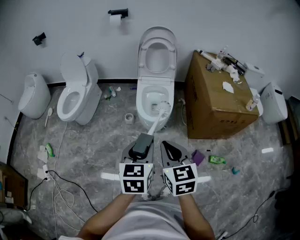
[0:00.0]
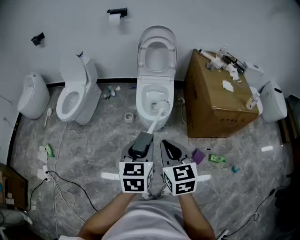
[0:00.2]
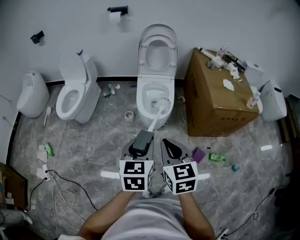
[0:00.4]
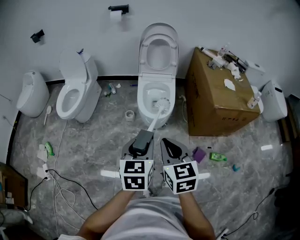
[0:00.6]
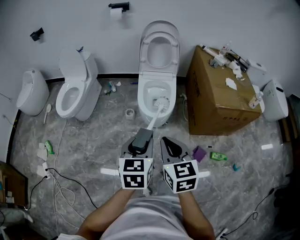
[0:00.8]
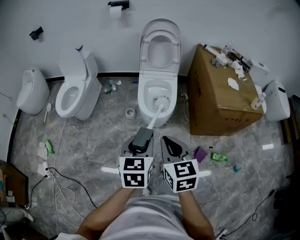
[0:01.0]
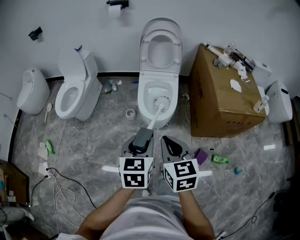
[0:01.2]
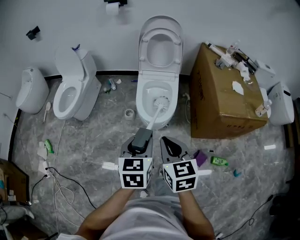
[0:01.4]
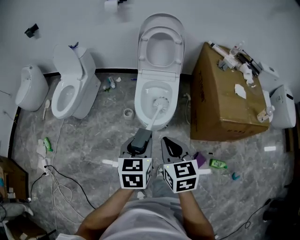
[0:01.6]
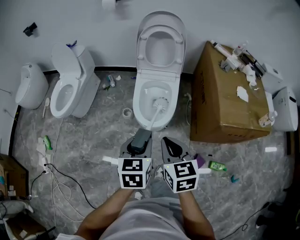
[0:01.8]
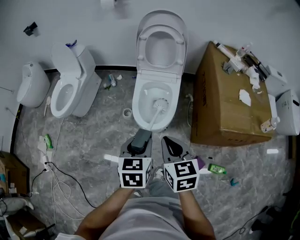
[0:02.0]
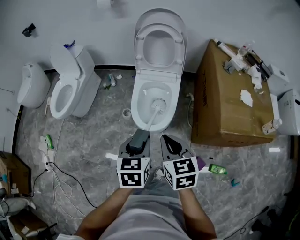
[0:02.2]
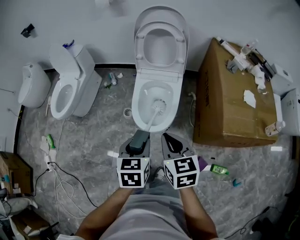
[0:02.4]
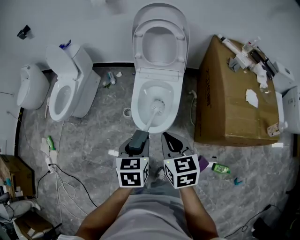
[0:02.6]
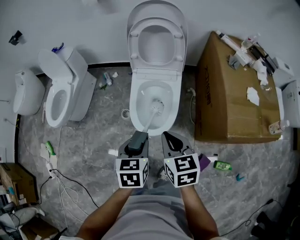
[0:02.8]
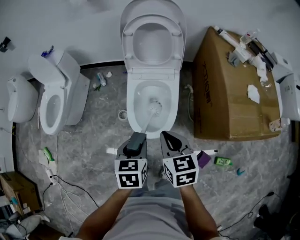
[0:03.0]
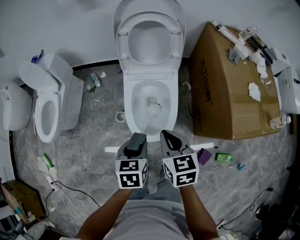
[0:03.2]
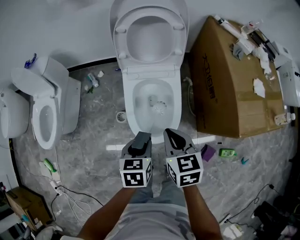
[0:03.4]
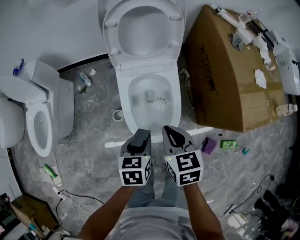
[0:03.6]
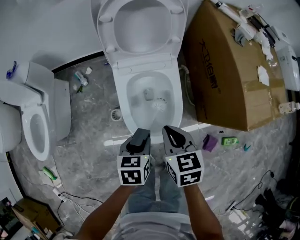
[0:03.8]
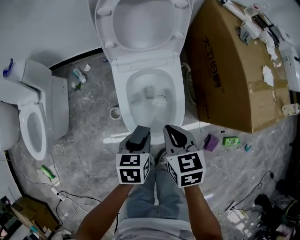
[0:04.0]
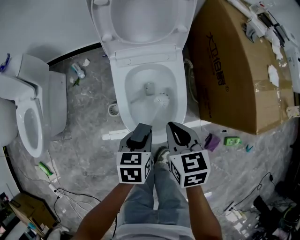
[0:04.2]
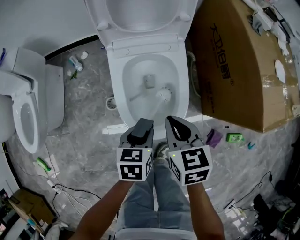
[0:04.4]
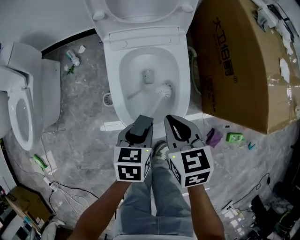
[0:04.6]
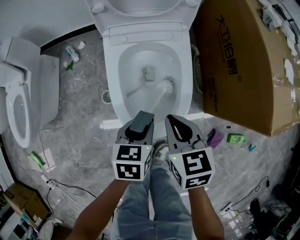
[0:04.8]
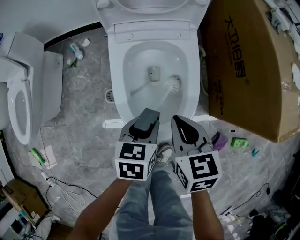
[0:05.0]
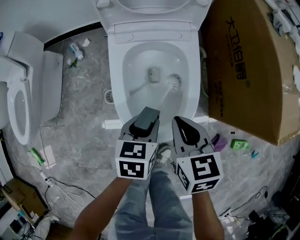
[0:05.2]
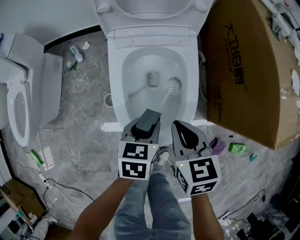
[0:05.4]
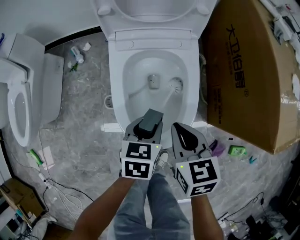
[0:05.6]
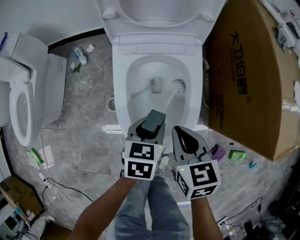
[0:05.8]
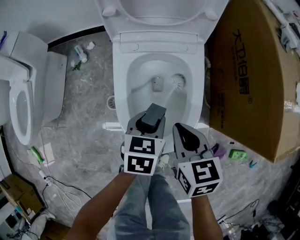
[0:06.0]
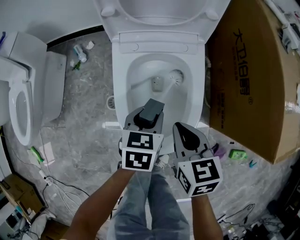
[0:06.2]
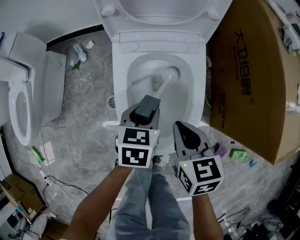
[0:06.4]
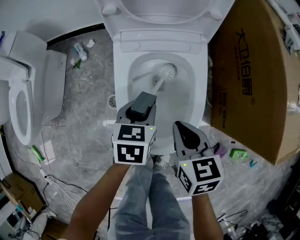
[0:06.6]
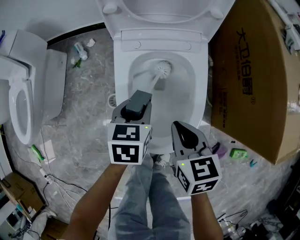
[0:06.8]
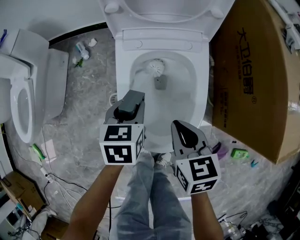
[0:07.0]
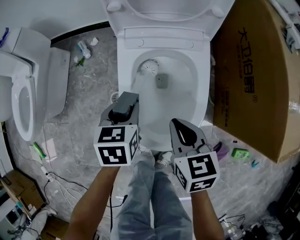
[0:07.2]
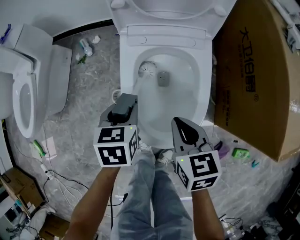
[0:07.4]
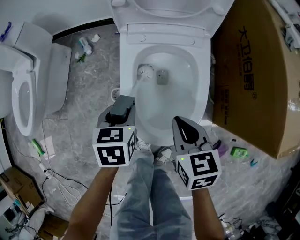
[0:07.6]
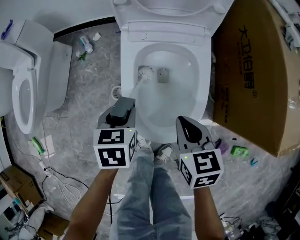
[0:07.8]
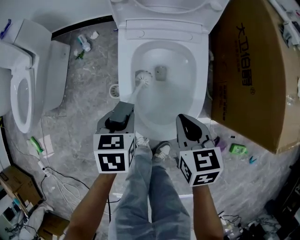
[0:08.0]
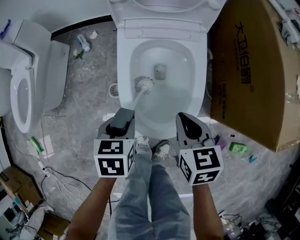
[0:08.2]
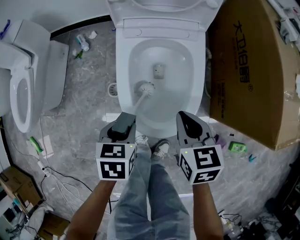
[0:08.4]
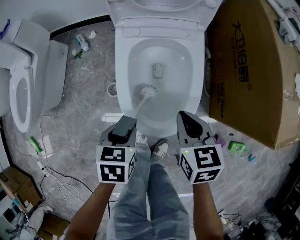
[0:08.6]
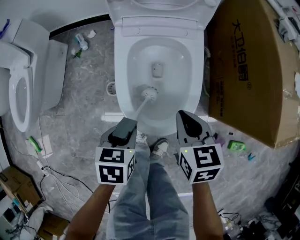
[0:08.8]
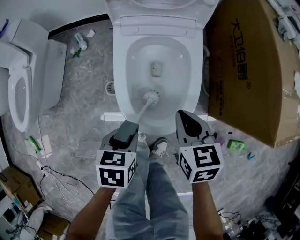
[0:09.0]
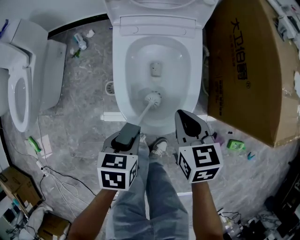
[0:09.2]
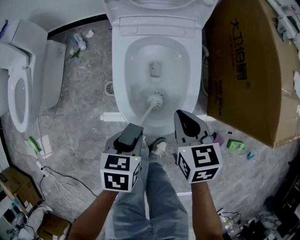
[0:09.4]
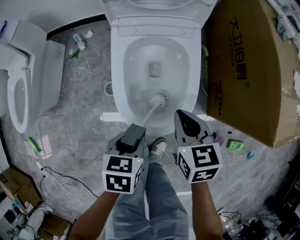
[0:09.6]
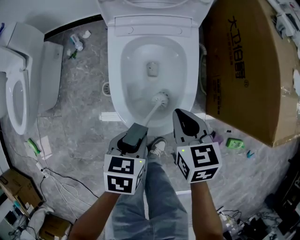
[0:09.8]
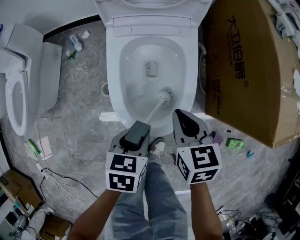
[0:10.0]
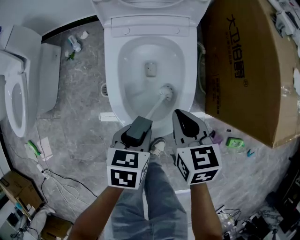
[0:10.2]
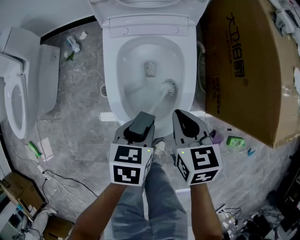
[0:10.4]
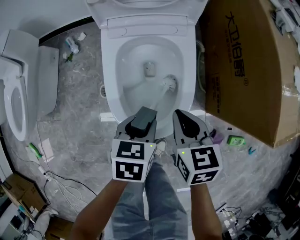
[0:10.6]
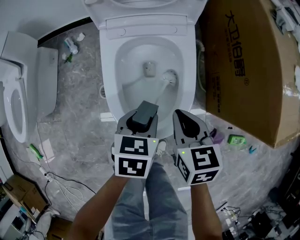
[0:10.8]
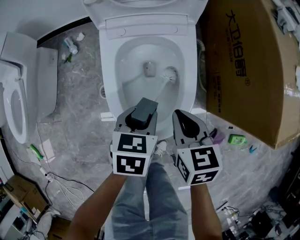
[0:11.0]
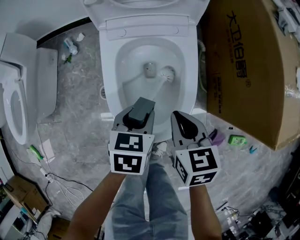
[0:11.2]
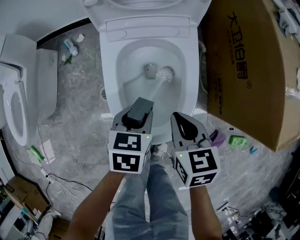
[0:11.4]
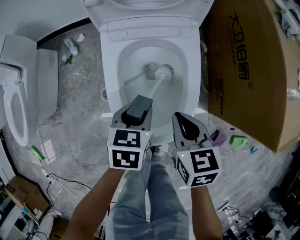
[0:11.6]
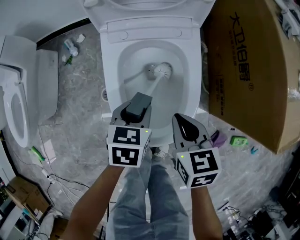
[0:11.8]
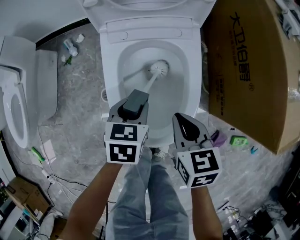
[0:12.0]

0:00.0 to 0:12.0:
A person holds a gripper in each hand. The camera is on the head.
0:00.0 to 0:01.6: The grippers both shift forward by approximately 15 cm.
0:01.6 to 0:03.0: The two grippers go roughly 25 cm forward and downward.
0:03.0 to 0:04.4: Both grippers move downward and forward, roughly 25 cm.
0:04.4 to 0:06.0: The left gripper is displaced forward and downward by some 10 cm, while the right gripper heads downward, covering about 5 cm.
0:06.0 to 0:07.6: The left gripper goes roughly 10 cm to the left.
0:07.6 to 0:09.0: The left gripper travels backward by about 15 cm.
0:09.0 to 0:10.4: The left gripper moves to the right and forward, approximately 10 cm.
0:10.4 to 0:12.0: The left gripper travels forward by approximately 10 cm.

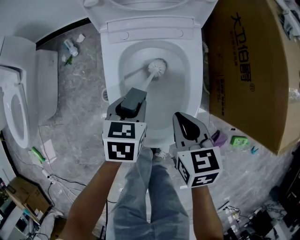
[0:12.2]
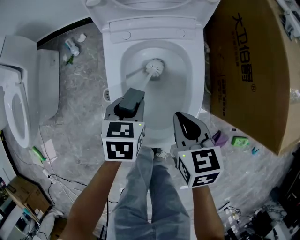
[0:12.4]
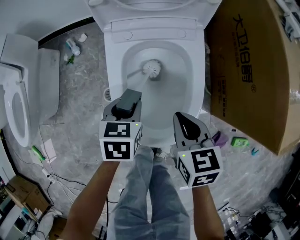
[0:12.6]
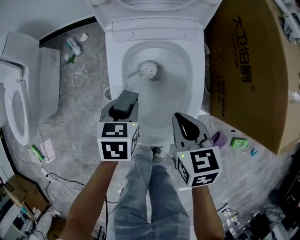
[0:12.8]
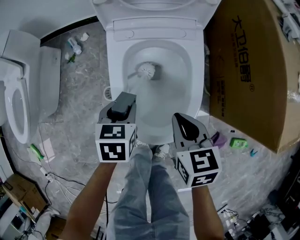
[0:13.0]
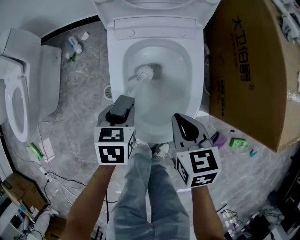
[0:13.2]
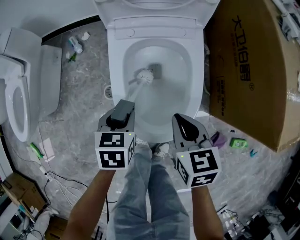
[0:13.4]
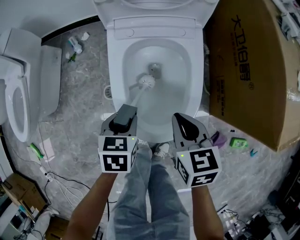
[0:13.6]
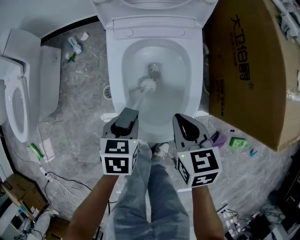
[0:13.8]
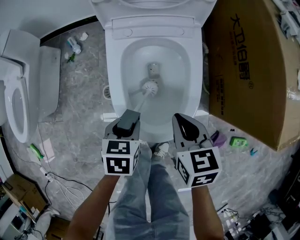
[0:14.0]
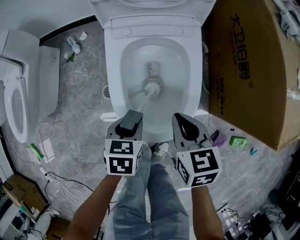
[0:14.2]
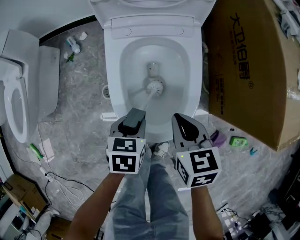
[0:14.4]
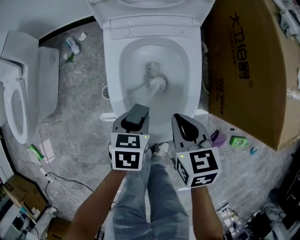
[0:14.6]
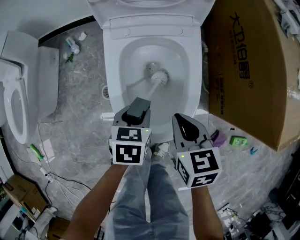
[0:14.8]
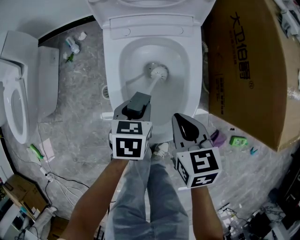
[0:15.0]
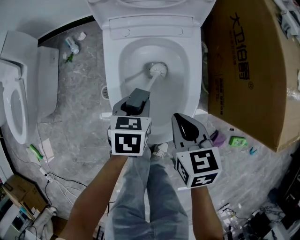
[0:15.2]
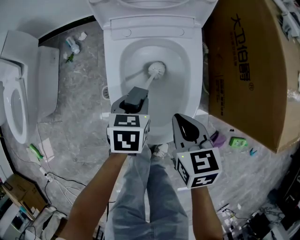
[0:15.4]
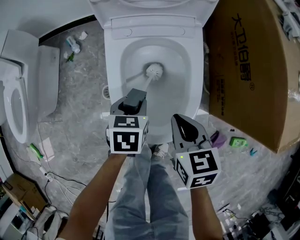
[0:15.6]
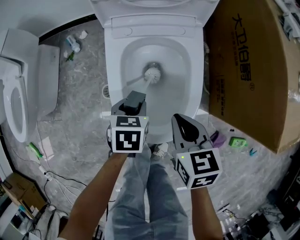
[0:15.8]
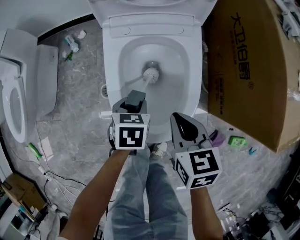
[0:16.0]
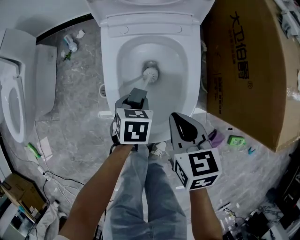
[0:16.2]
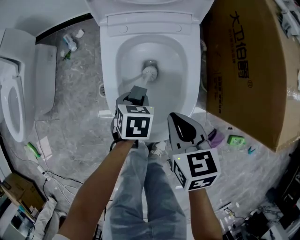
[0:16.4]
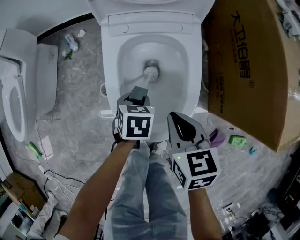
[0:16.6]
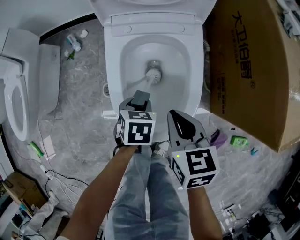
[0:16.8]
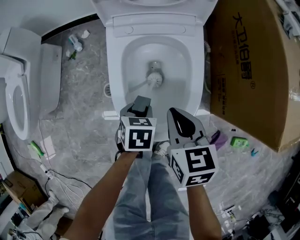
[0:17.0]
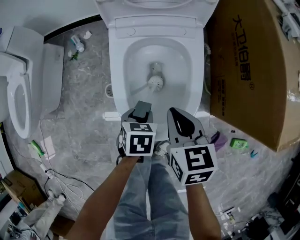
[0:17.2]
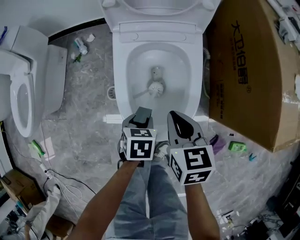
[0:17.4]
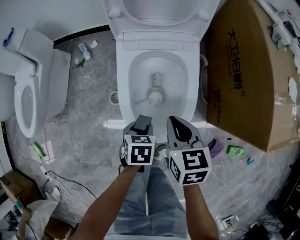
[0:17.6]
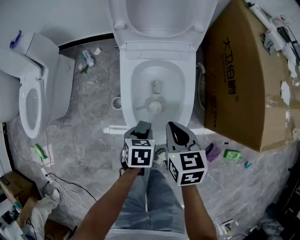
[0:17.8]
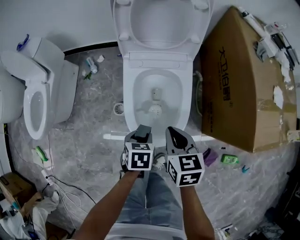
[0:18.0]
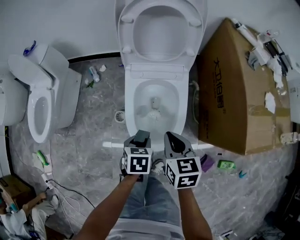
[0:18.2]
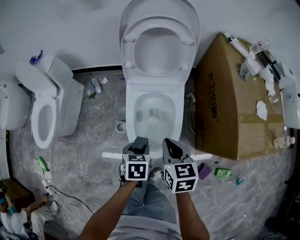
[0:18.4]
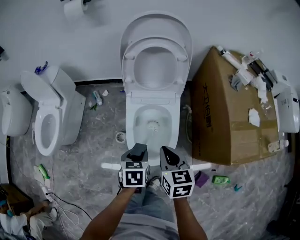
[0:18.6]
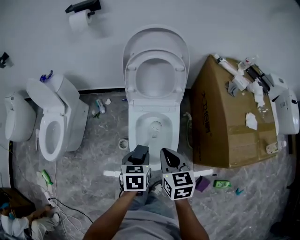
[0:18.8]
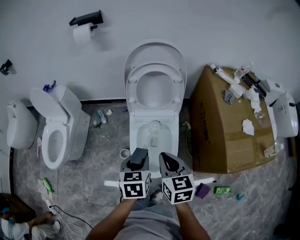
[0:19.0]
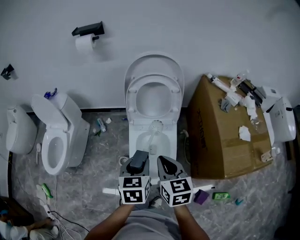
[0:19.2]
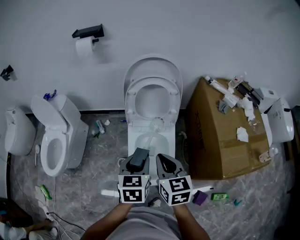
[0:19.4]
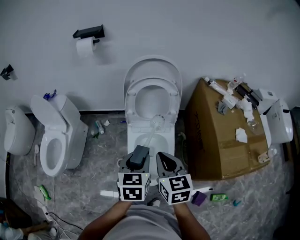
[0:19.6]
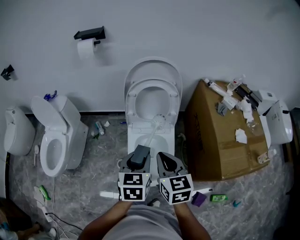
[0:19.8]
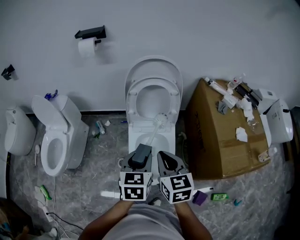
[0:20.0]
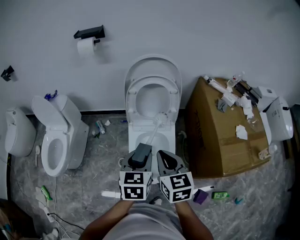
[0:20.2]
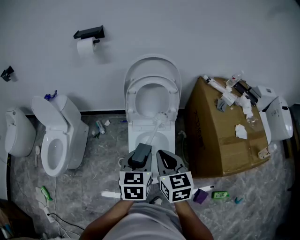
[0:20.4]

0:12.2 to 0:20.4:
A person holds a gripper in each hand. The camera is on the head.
0:12.2 to 0:13.8: The left gripper shifts approximately 10 cm backward.
0:13.8 to 0:15.4: The left gripper travels forward by approximately 5 cm.
0:15.4 to 0:17.2: The left gripper shifts approximately 5 cm backward.
0:17.2 to 0:18.8: Both grippers move upward, approximately 30 cm.
0:18.8 to 0:20.4: Both grippers move upward, roughly 15 cm. The left gripper turns by approximately 20 degrees.

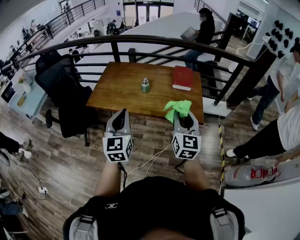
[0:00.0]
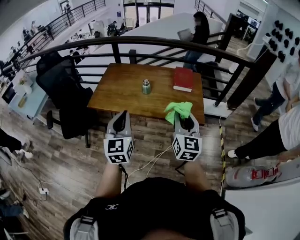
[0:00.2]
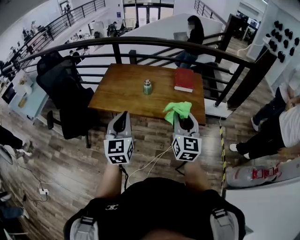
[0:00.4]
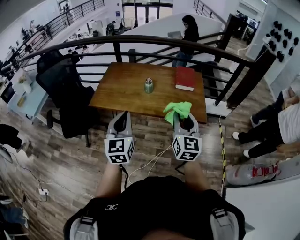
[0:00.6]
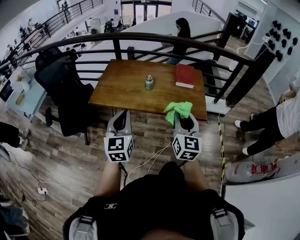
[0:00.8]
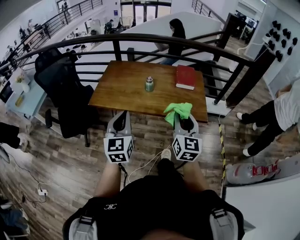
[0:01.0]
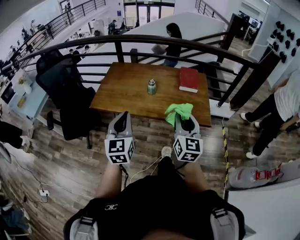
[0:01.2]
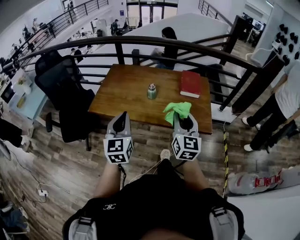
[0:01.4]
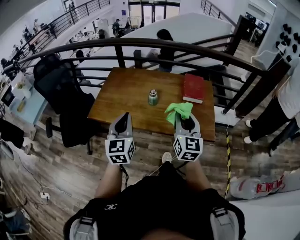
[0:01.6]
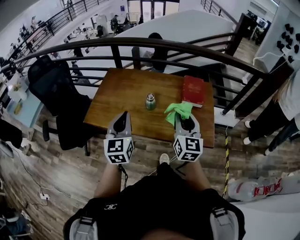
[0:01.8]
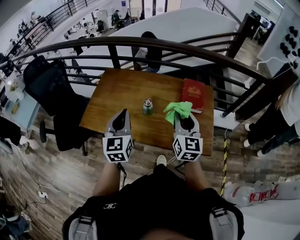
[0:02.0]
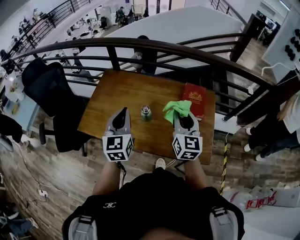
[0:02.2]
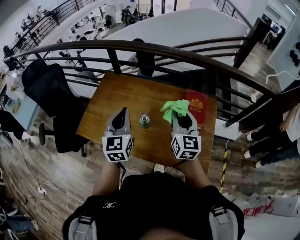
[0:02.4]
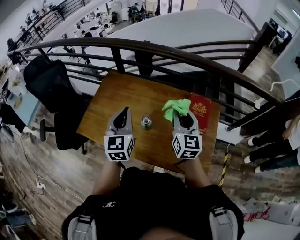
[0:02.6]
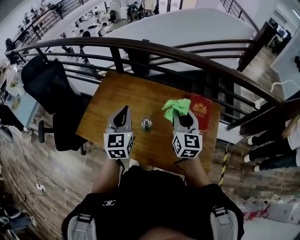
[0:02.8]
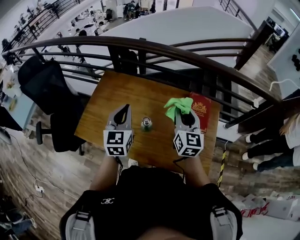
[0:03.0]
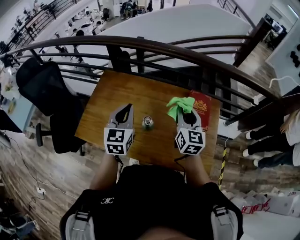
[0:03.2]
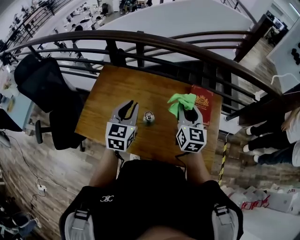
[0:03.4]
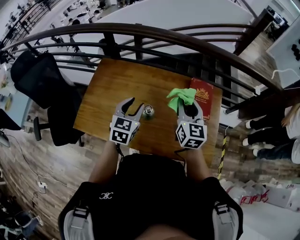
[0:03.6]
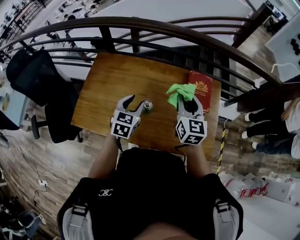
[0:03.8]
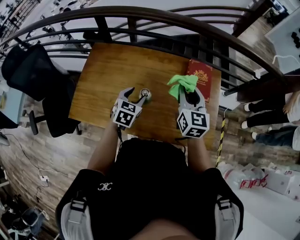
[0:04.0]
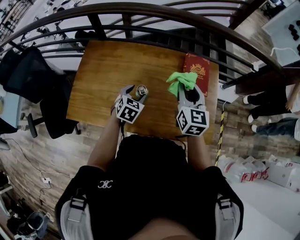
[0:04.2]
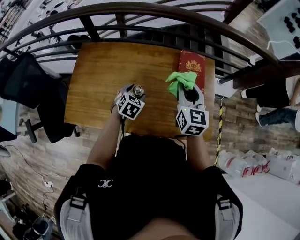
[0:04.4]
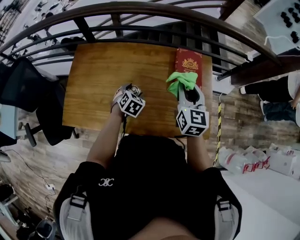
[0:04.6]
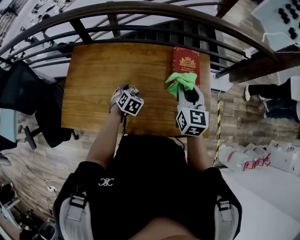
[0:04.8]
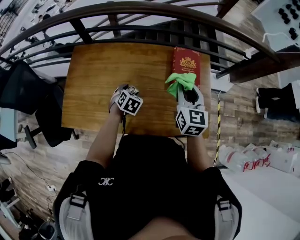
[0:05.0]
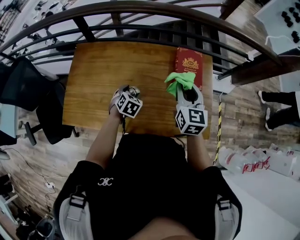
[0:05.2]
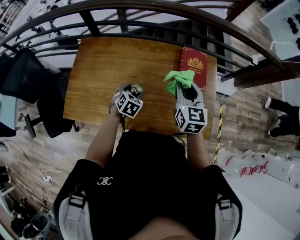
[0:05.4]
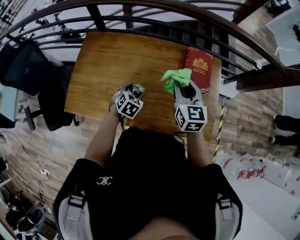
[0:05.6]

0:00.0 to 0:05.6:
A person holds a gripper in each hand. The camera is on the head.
0:00.0 to 0:01.4: The grippers both shift forward by roughly 5 cm.
0:01.4 to 0:02.8: Both grippers move forward, approximately 35 cm.
0:02.8 to 0:04.2: The right gripper ends up roughly 5 cm from where it was; the left gripper is displaced downward by some 20 cm, angles its fingers downward, by about 40 degrees, and opens up.
0:04.2 to 0:05.6: The left gripper is displaced downward by some 5 cm.
